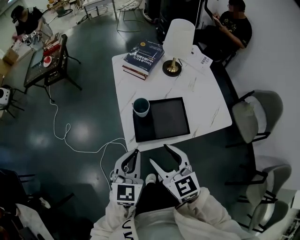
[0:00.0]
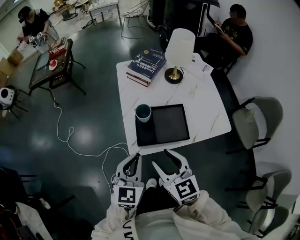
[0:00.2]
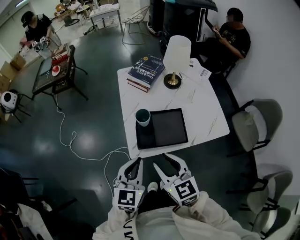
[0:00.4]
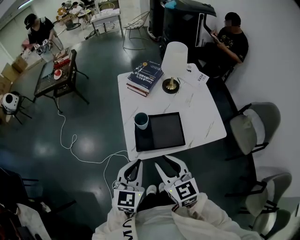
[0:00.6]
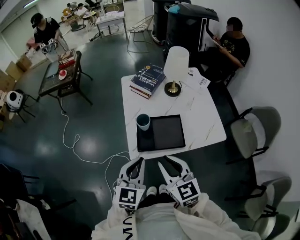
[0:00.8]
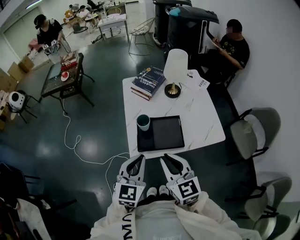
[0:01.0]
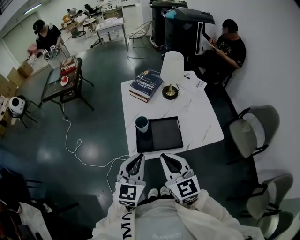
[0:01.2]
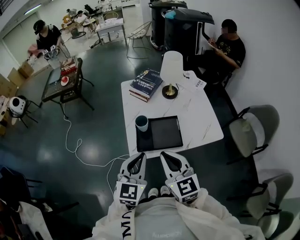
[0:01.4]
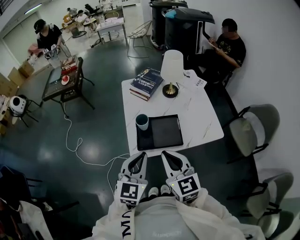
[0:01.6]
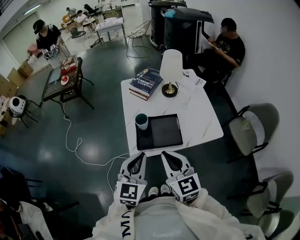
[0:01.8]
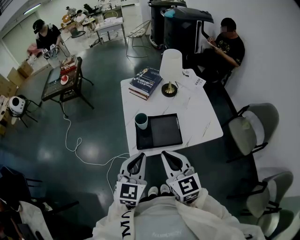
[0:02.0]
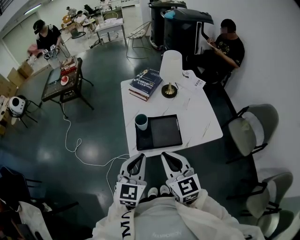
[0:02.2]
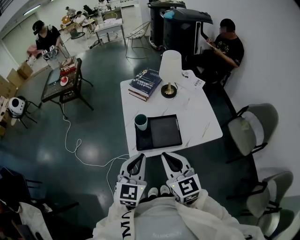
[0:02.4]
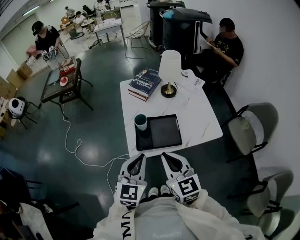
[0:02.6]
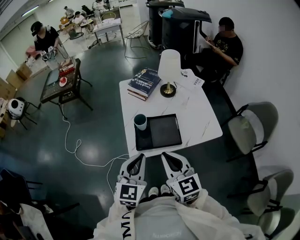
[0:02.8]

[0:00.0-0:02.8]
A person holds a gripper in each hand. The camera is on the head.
0:00.0 to 0:01.4: The left gripper heads upward, covering about 10 cm. Meanwhile the right gripper heads upward and to the right, covering some 10 cm, and closes its fingers.
0:01.4 to 0:02.8: The grippers stay close to where they were, moving slightly.

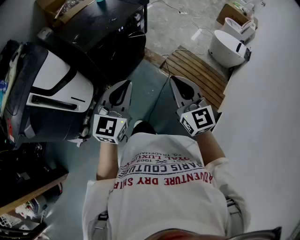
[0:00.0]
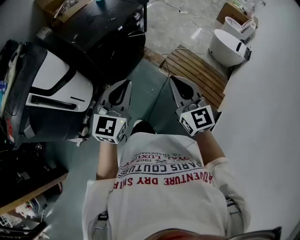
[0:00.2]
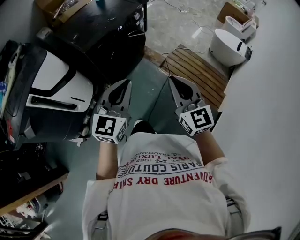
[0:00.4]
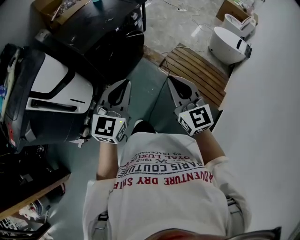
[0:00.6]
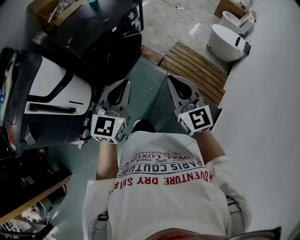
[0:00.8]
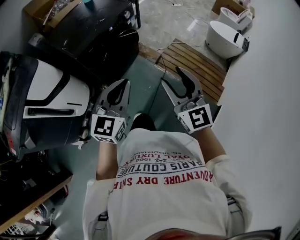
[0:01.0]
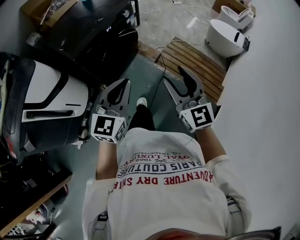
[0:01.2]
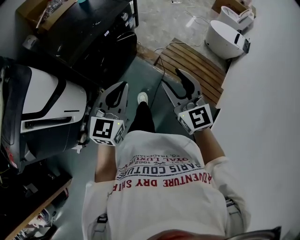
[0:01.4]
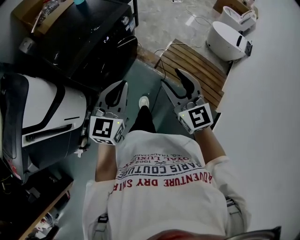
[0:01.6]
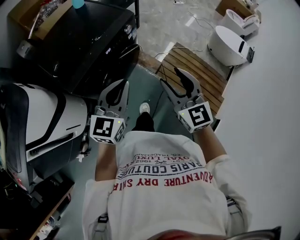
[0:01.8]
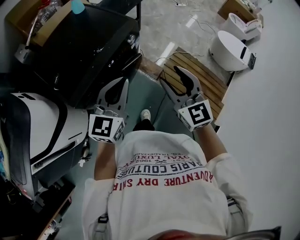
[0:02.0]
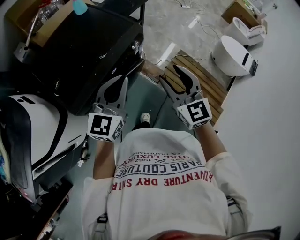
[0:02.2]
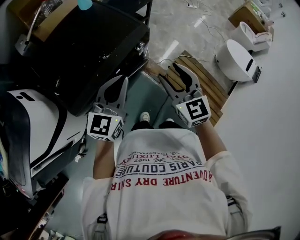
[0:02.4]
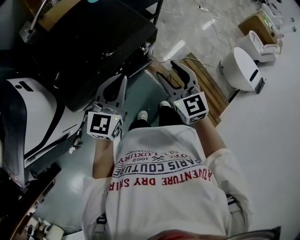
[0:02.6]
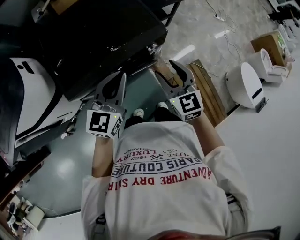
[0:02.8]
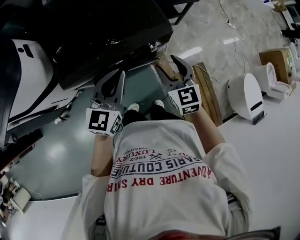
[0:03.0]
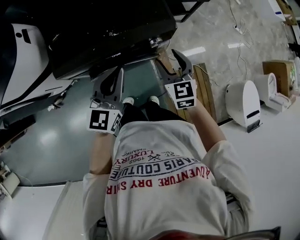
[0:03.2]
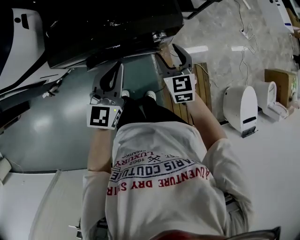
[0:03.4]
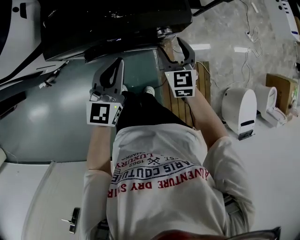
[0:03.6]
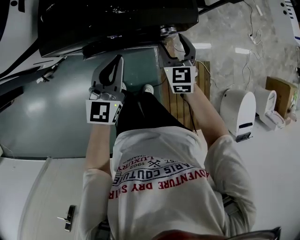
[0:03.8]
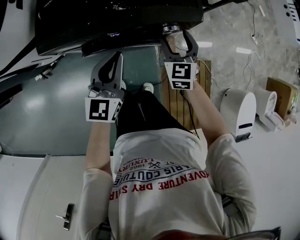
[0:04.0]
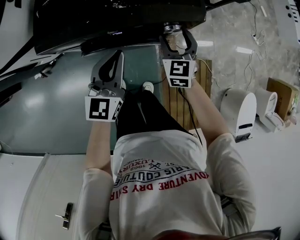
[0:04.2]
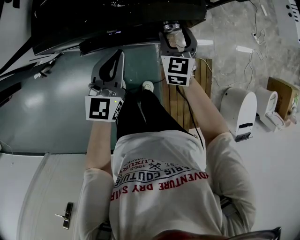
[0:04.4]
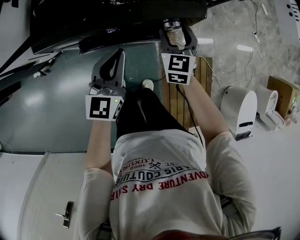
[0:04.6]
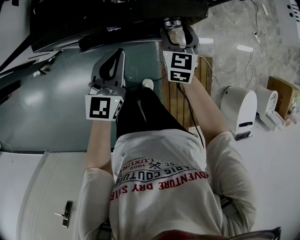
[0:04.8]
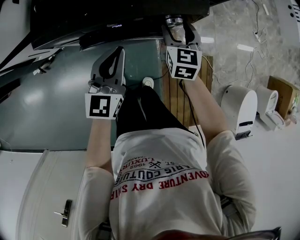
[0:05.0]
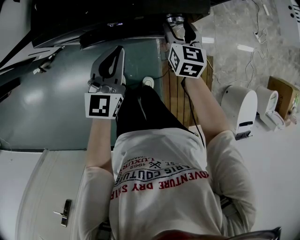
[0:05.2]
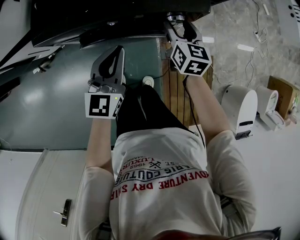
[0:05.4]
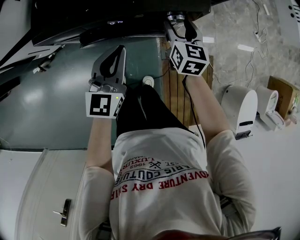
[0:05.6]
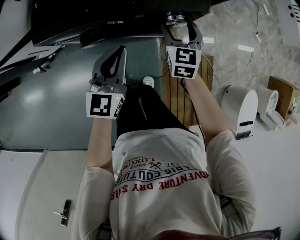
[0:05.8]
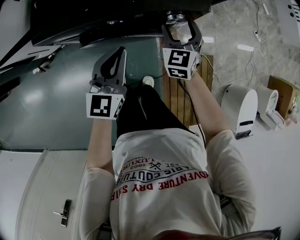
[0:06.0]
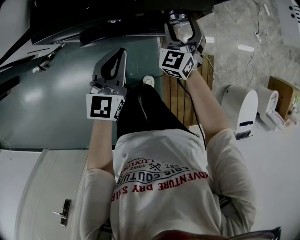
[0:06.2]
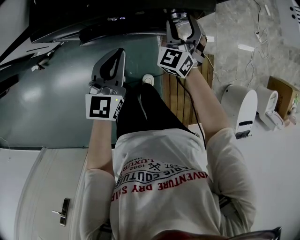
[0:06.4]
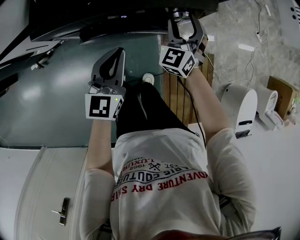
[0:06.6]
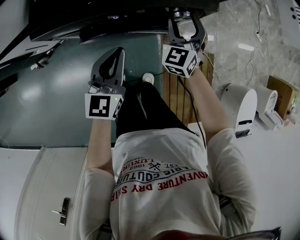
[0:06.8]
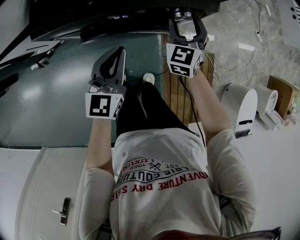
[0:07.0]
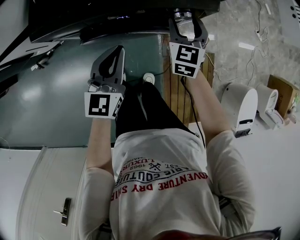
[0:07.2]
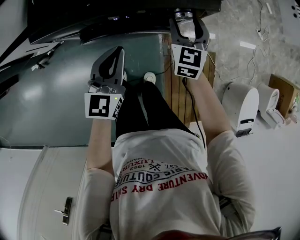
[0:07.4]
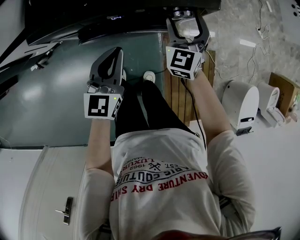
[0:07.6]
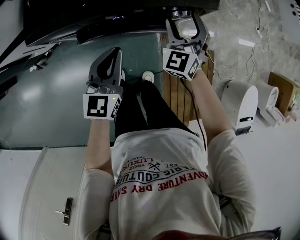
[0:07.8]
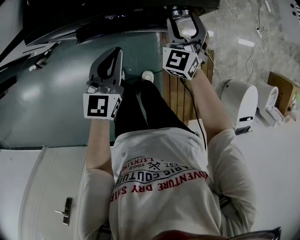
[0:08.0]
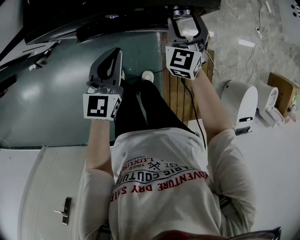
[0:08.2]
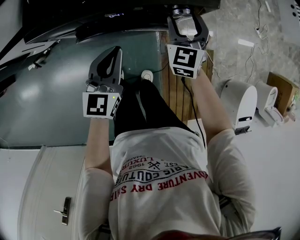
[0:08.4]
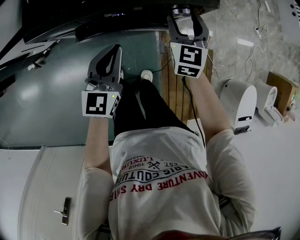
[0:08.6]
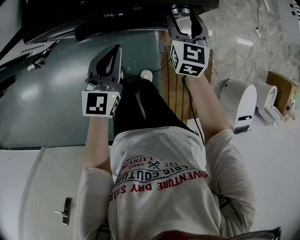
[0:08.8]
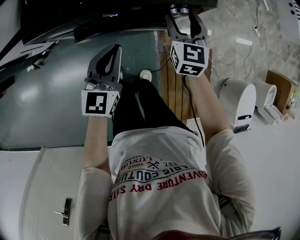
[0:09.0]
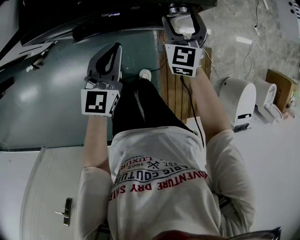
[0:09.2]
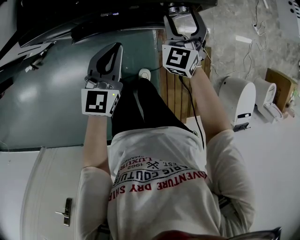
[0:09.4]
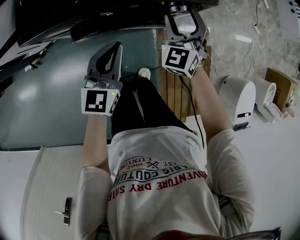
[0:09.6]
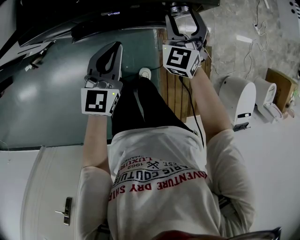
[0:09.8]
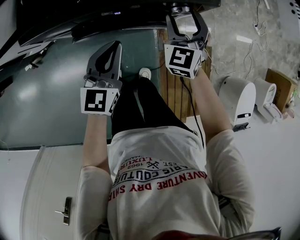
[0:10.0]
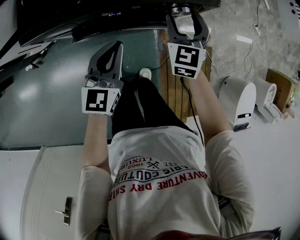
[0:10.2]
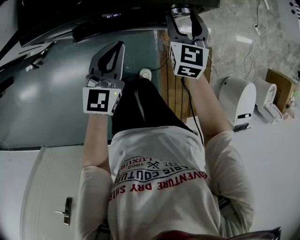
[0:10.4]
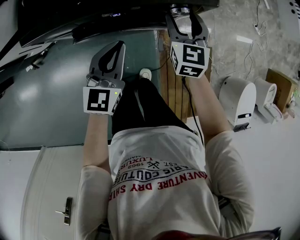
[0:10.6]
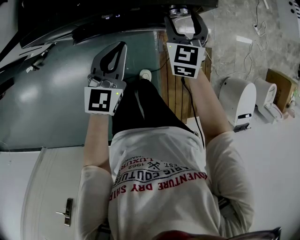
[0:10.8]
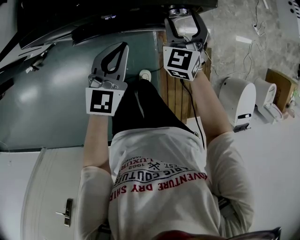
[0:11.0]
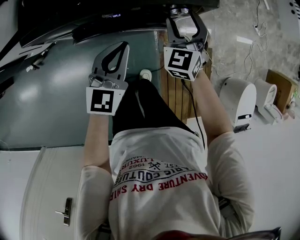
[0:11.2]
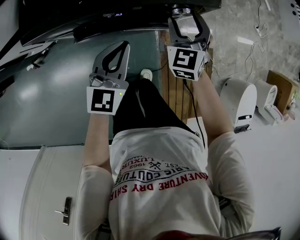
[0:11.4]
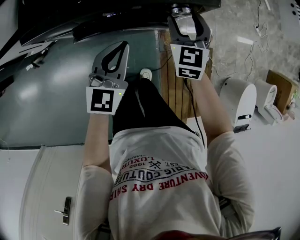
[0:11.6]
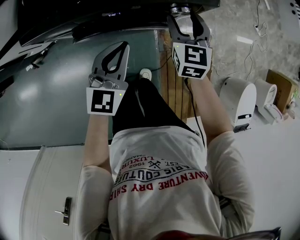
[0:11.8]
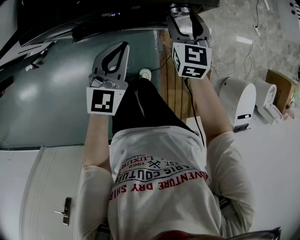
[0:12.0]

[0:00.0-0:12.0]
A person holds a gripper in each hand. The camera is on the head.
0:00.0 to 0:01.6: Both grippers travel together forward, some 20 cm. The right gripper opens.
0:01.6 to 0:03.0: The right gripper shifts by about 40 cm, and changes its angle by approximately 30 degrees; the left gripper moves about 30 cm, and changes its angle by some 30 degrees.
0:03.0 to 0:04.4: The right gripper goes about 20 cm downward and forward; the left gripper shifts some 15 cm downward, and swivels some 20 degrees.
0:07.6 to 0:09.0: The right gripper swivels roughly 20 degrees.

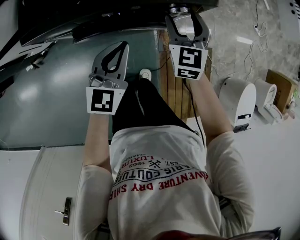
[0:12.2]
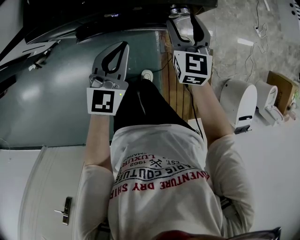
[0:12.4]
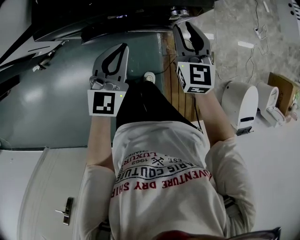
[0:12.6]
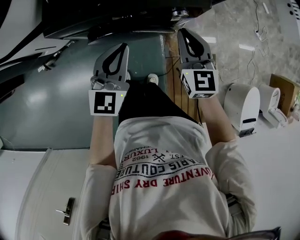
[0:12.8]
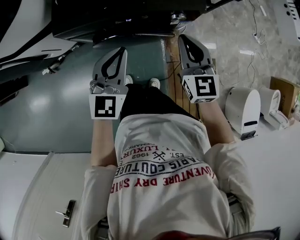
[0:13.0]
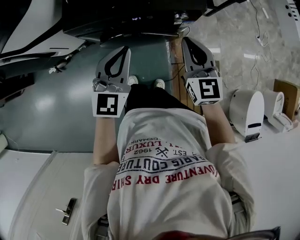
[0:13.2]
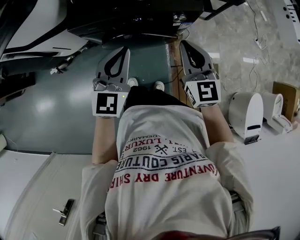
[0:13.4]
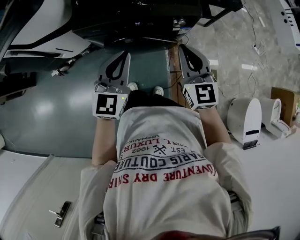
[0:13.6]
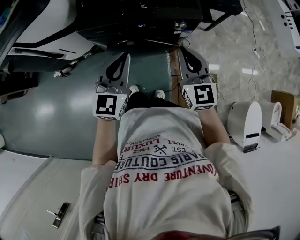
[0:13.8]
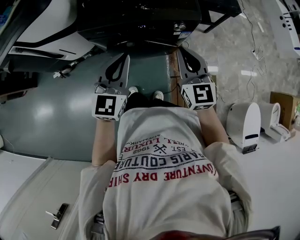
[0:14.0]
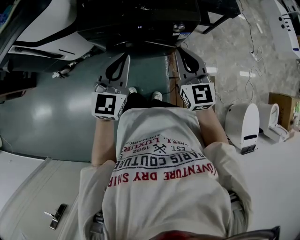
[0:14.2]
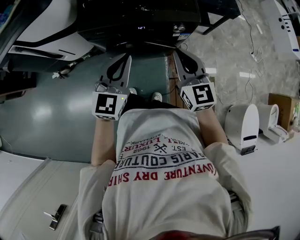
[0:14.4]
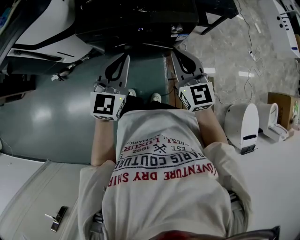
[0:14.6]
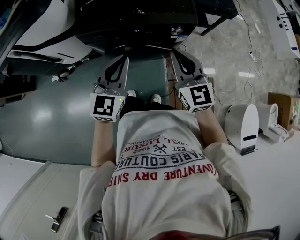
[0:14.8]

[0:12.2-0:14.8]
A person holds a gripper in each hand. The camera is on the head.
0:12.2 to 0:13.4: Both grippers travel together upward and backward, about 20 cm. The right gripper closes its fingers.
0:13.4 to 0:14.8: The grippers make only small movements.

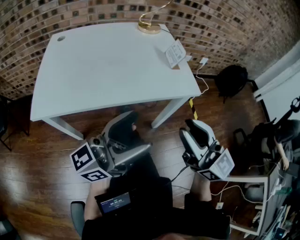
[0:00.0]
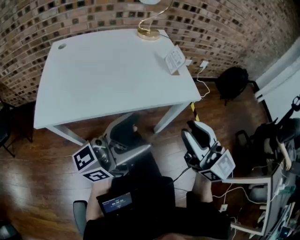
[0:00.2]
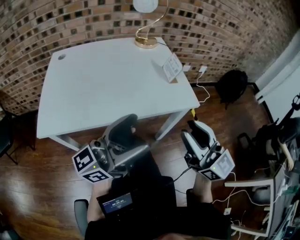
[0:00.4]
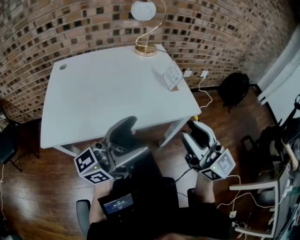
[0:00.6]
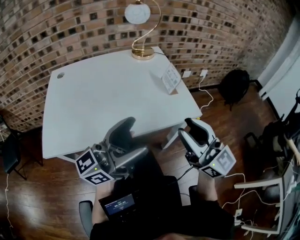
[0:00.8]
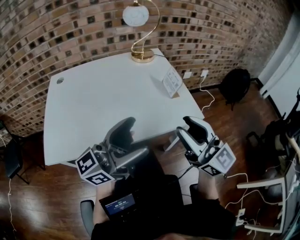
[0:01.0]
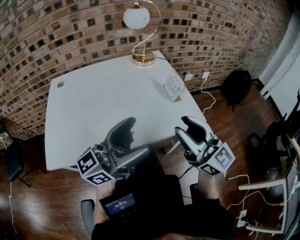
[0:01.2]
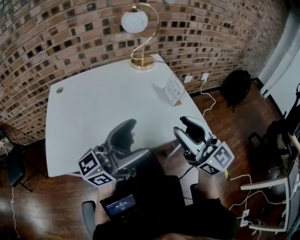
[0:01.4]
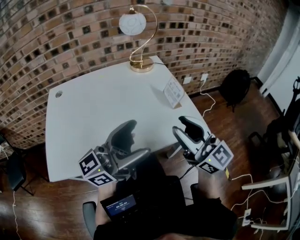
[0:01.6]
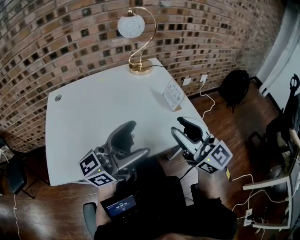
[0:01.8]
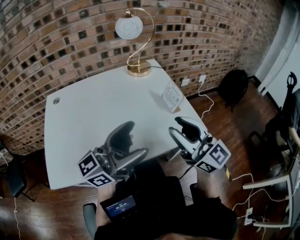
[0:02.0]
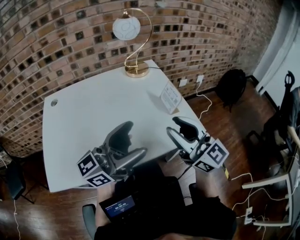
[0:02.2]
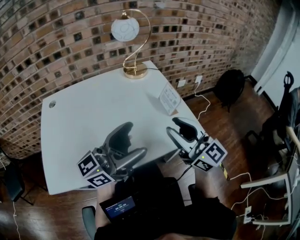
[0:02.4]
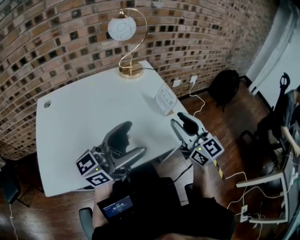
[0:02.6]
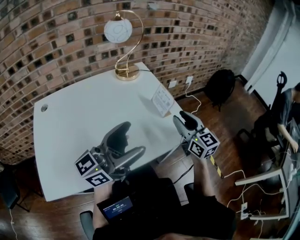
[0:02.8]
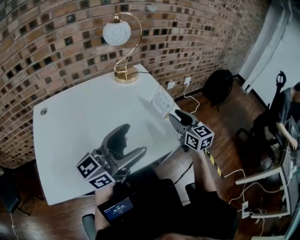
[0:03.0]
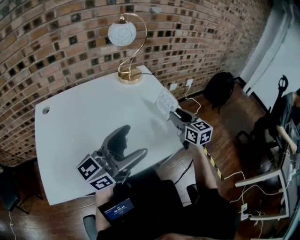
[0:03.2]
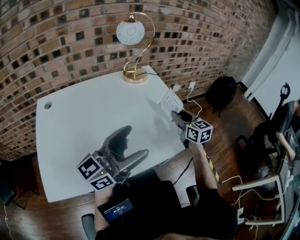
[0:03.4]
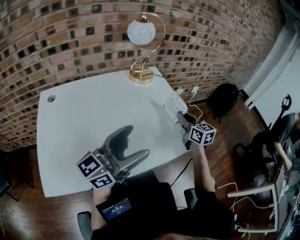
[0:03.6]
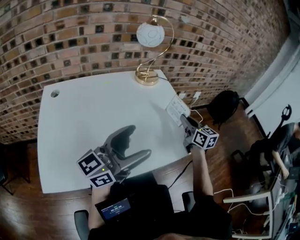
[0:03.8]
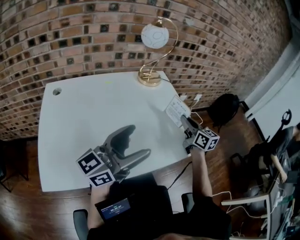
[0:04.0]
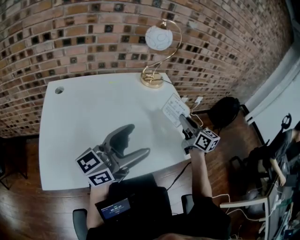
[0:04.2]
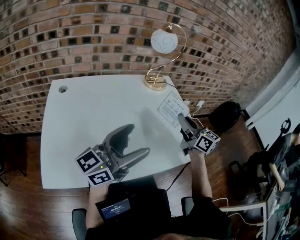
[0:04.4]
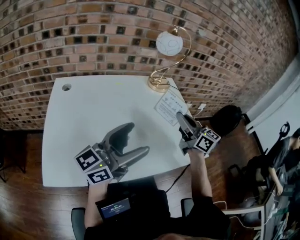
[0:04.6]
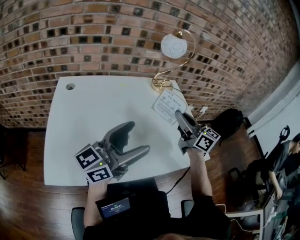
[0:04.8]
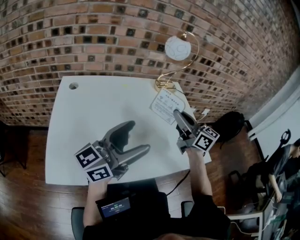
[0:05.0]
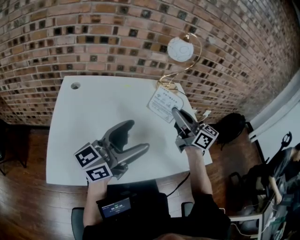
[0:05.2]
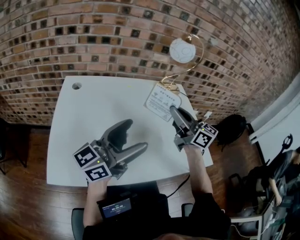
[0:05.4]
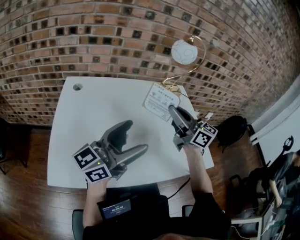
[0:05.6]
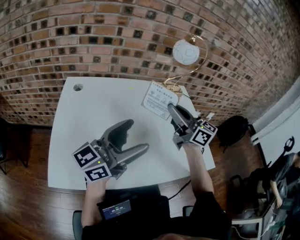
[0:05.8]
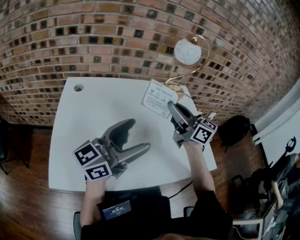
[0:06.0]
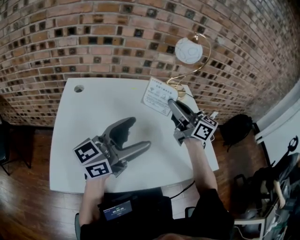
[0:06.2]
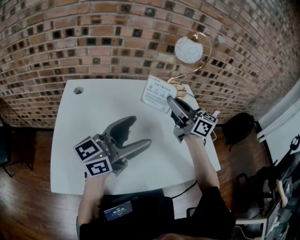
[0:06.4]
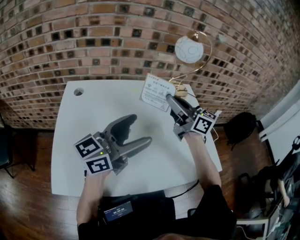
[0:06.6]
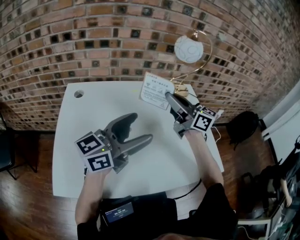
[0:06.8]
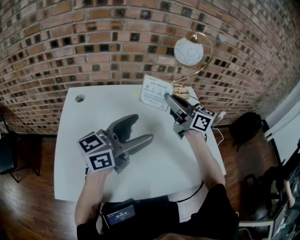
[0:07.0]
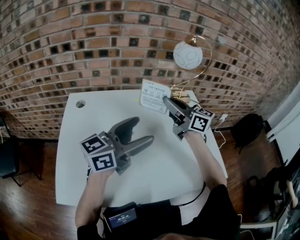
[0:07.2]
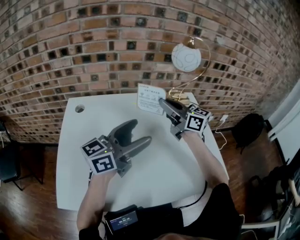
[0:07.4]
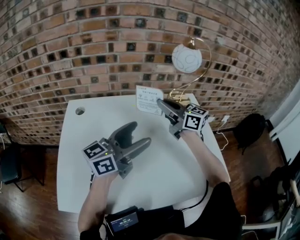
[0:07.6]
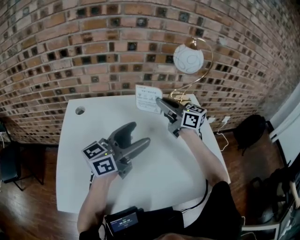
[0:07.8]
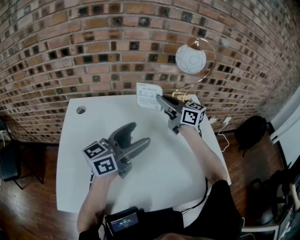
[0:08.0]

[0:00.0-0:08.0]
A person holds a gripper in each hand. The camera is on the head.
0:00.0 to 0:01.6: Both grippers travel together forward, approximately 15 cm.
0:01.6 to 0:03.2: The left gripper moves forward, approximately 5 cm. Meanwhile the right gripper shifts approximately 25 cm forward and downward, and changes its angle by some 40 degrees.
0:03.2 to 0:04.8: The left gripper shifts roughly 10 cm to the left; the right gripper shifts about 20 cm to the left and upward, swivels about 30 degrees, and closes.
0:04.8 to 0:06.4: The left gripper is displaced forward by approximately 5 cm; the right gripper heads to the left and forward, covering about 10 cm.
0:06.4 to 0:08.0: Both grippers move forward, approximately 10 cm.
